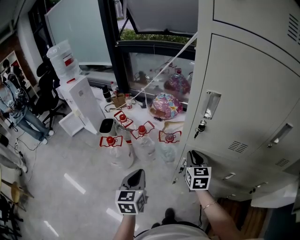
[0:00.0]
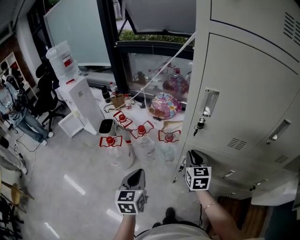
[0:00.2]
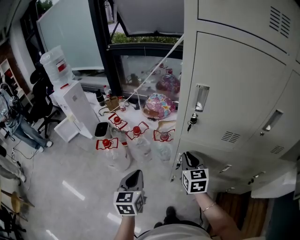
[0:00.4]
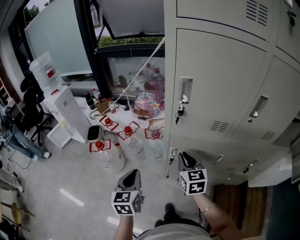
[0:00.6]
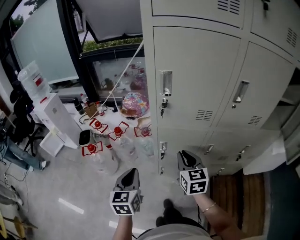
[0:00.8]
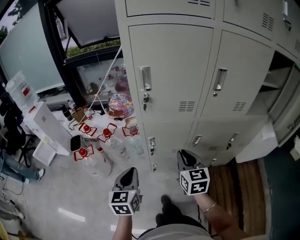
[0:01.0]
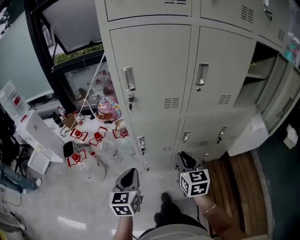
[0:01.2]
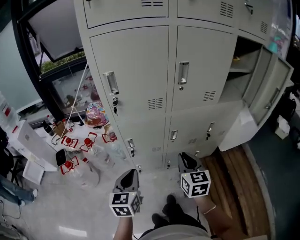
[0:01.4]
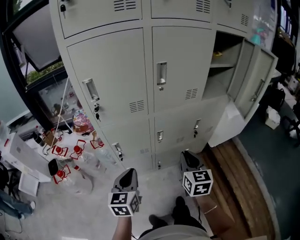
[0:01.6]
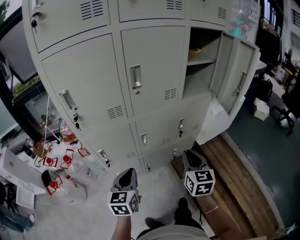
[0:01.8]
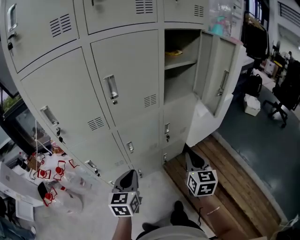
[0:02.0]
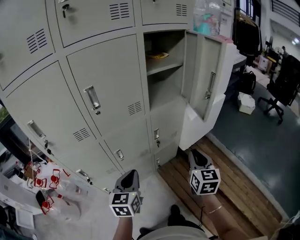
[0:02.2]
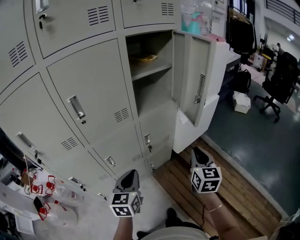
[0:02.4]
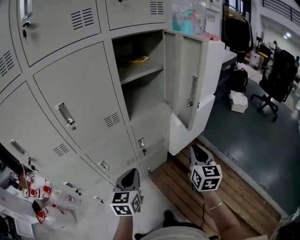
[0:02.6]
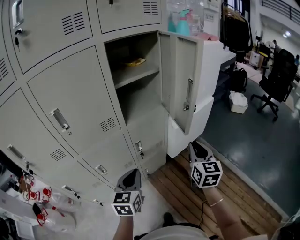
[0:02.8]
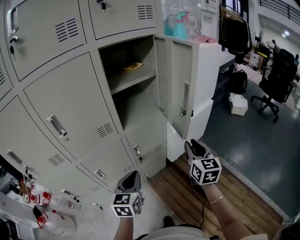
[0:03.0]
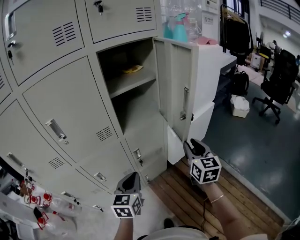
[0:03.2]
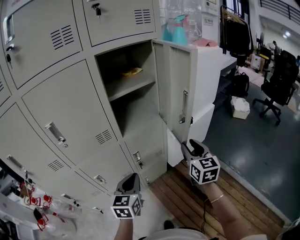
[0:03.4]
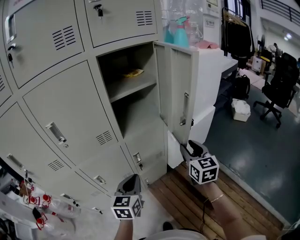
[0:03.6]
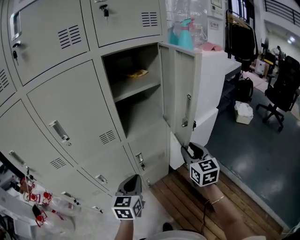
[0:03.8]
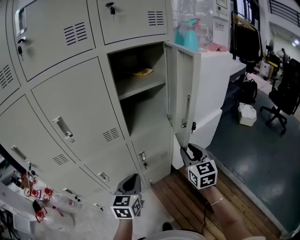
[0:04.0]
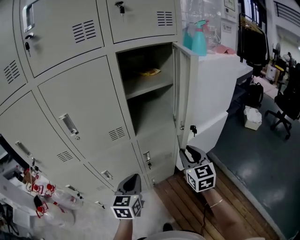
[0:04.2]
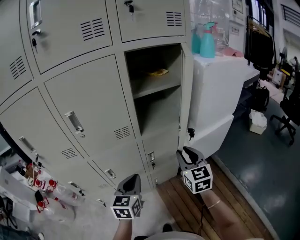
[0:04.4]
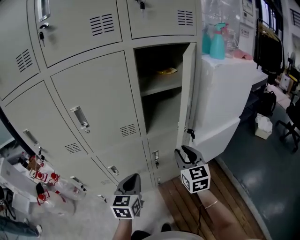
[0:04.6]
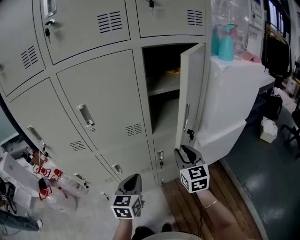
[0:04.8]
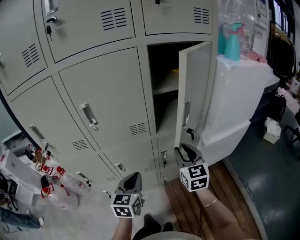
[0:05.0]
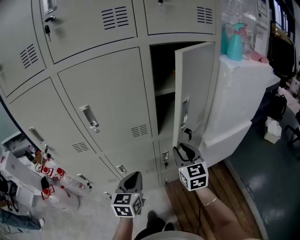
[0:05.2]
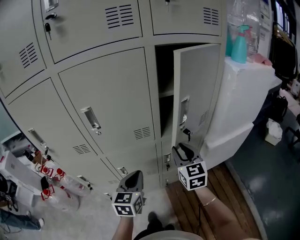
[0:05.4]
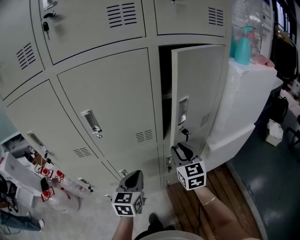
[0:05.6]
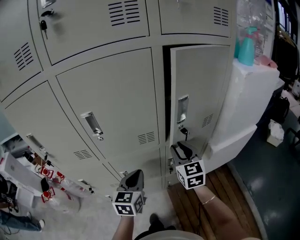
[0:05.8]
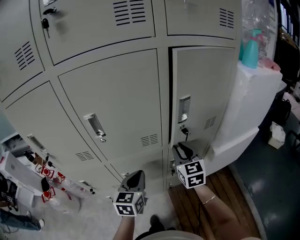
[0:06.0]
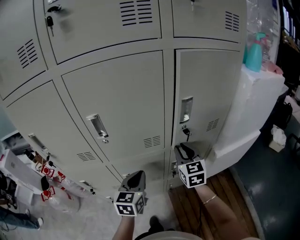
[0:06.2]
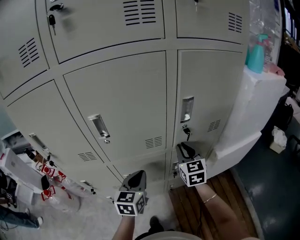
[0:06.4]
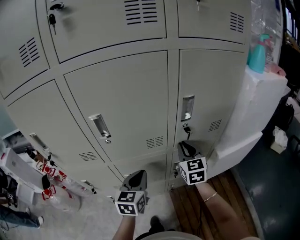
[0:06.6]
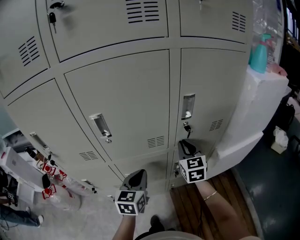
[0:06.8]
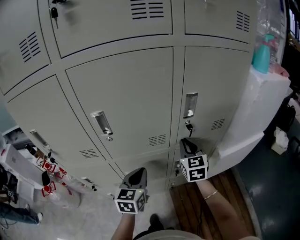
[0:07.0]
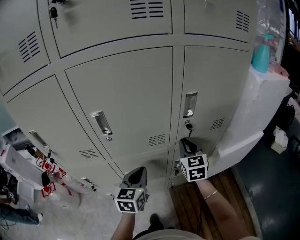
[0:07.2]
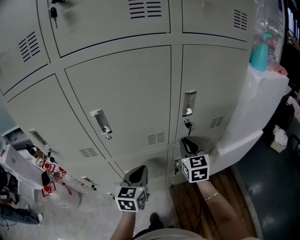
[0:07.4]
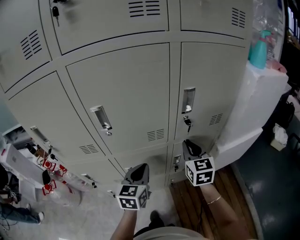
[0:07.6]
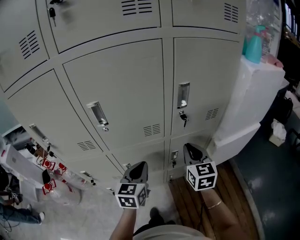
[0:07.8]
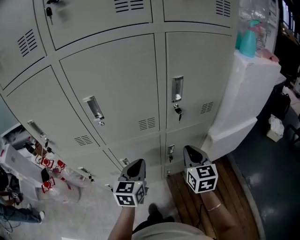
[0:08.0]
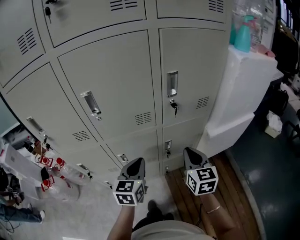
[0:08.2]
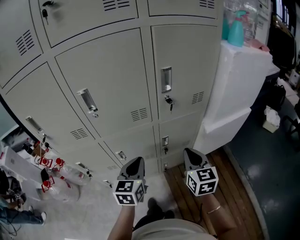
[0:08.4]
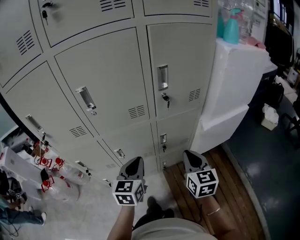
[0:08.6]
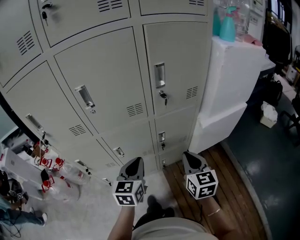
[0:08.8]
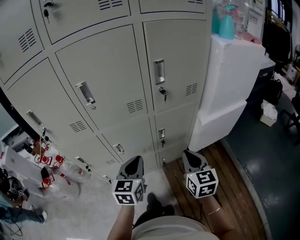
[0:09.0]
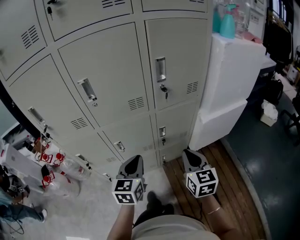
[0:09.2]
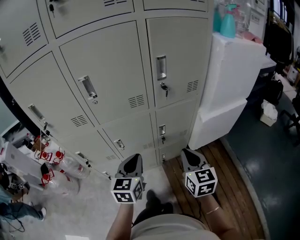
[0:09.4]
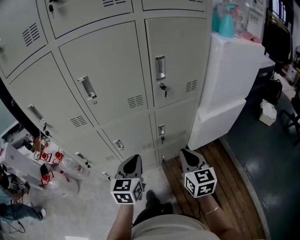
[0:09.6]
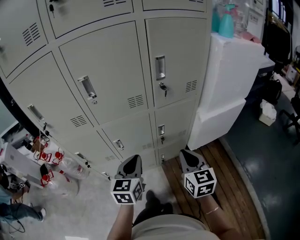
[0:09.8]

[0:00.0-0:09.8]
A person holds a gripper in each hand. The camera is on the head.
0:00.0 to 0:01.4: The left gripper moves approximately 20 cm, and rotates approximately 30 degrees, while the right gripper ends up about 35 cm from where it was, and rotates some 30 degrees.
0:01.4 to 0:02.8: The two grippers travel together, roughly 50 cm. The left gripper changes its angle by roughly 30 degrees. The right gripper changes its angle by about 30 degrees.
0:02.8 to 0:04.2: The right gripper travels forward and to the left by approximately 10 cm, and rotates about 20 degrees.
0:04.2 to 0:05.6: The left gripper travels to the left and forward by roughly 10 cm, while the right gripper goes approximately 20 cm to the left and forward.
0:05.6 to 0:07.0: The left gripper ends up some 5 cm from where it was, while the right gripper goes approximately 10 cm forward, and closes.
0:07.0 to 0:08.4: The right gripper is displaced backward by approximately 20 cm; the left gripper goes approximately 10 cm backward and to the right.
0:08.4 to 0:09.8: The grippers both shift backward by some 10 cm.

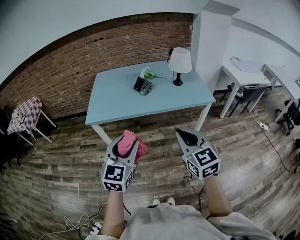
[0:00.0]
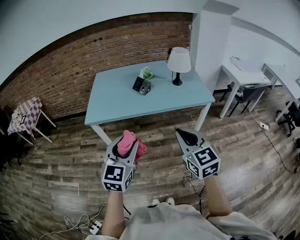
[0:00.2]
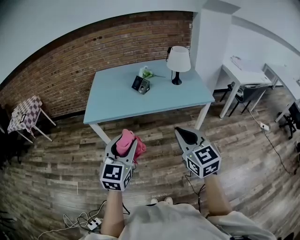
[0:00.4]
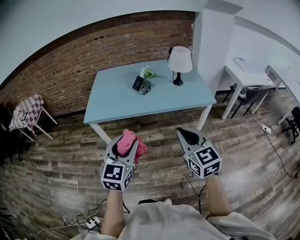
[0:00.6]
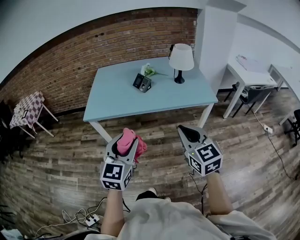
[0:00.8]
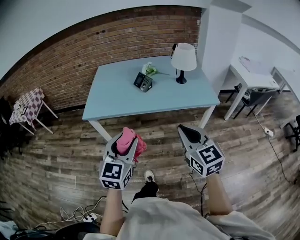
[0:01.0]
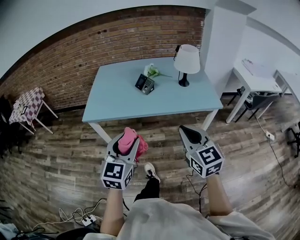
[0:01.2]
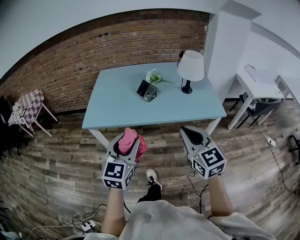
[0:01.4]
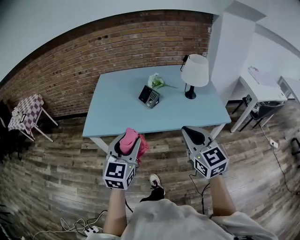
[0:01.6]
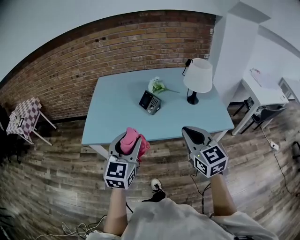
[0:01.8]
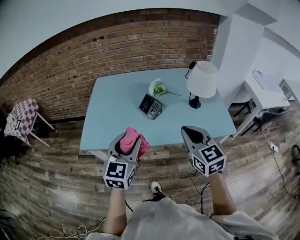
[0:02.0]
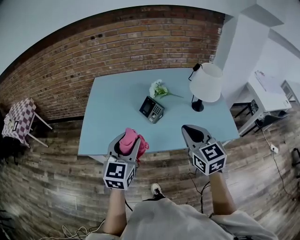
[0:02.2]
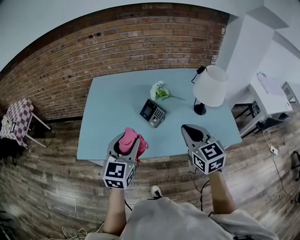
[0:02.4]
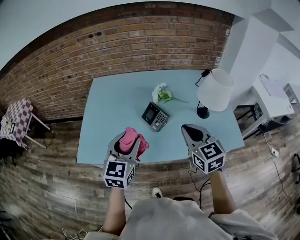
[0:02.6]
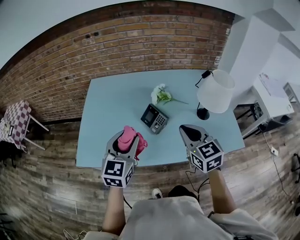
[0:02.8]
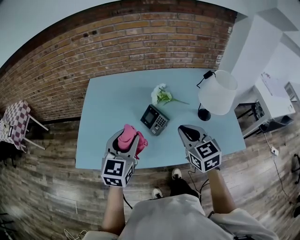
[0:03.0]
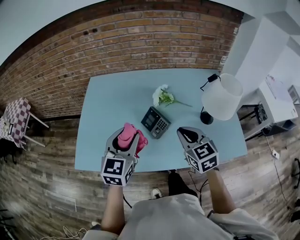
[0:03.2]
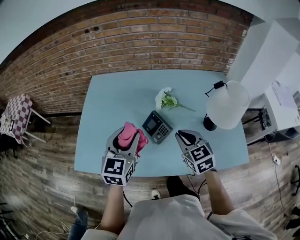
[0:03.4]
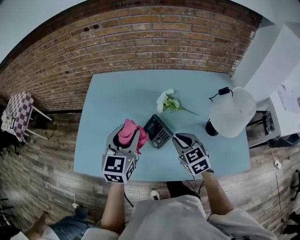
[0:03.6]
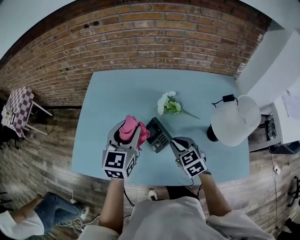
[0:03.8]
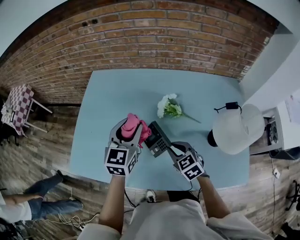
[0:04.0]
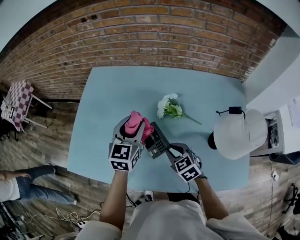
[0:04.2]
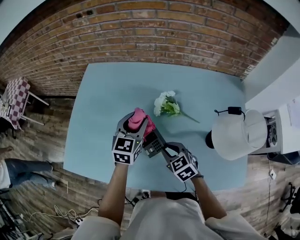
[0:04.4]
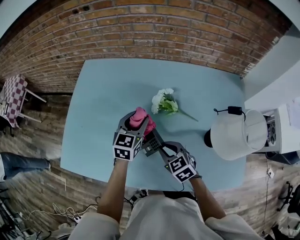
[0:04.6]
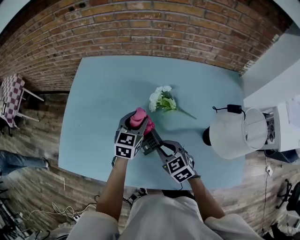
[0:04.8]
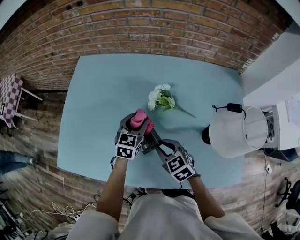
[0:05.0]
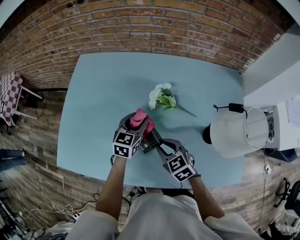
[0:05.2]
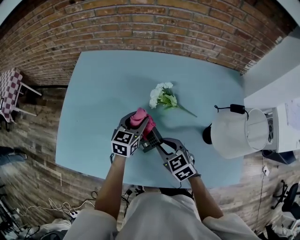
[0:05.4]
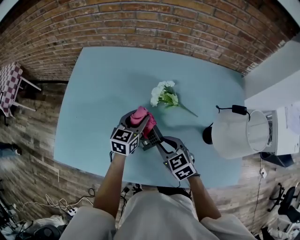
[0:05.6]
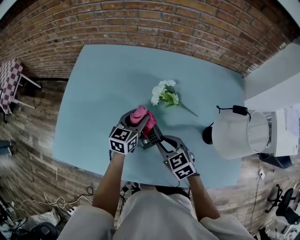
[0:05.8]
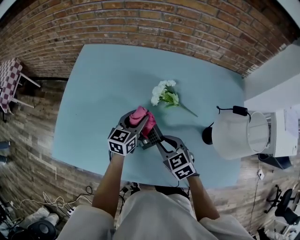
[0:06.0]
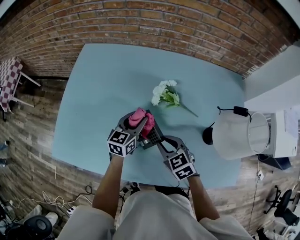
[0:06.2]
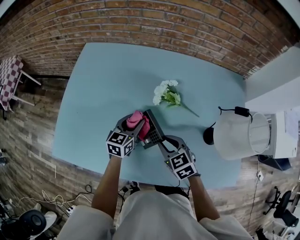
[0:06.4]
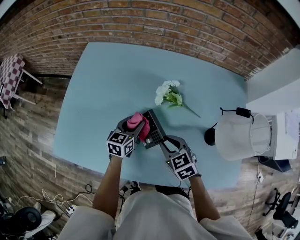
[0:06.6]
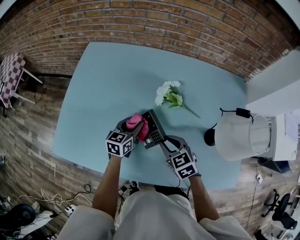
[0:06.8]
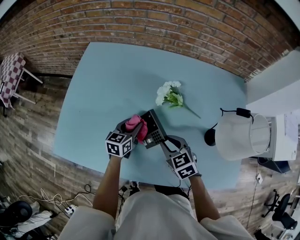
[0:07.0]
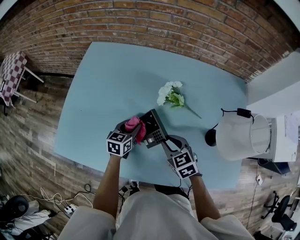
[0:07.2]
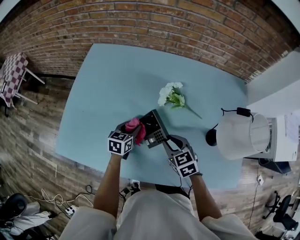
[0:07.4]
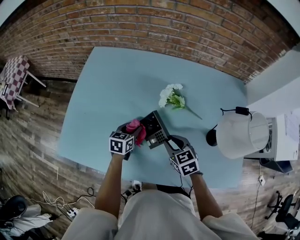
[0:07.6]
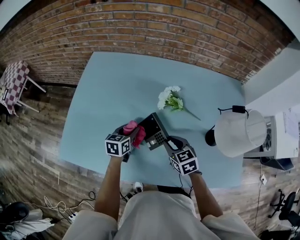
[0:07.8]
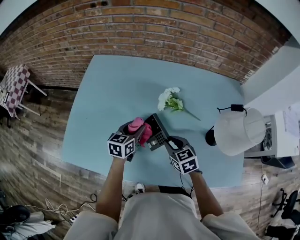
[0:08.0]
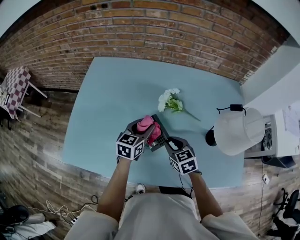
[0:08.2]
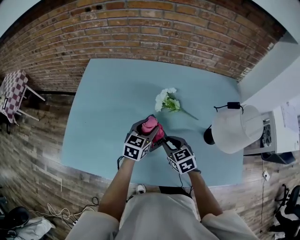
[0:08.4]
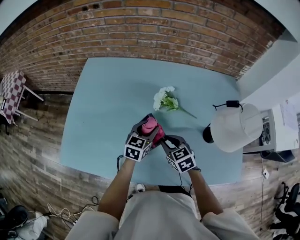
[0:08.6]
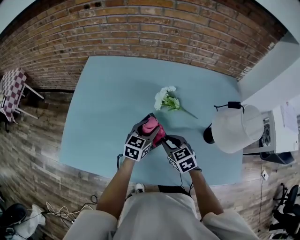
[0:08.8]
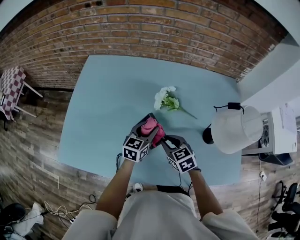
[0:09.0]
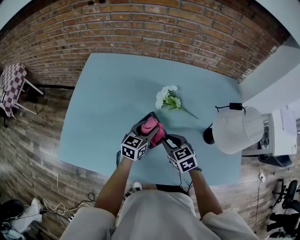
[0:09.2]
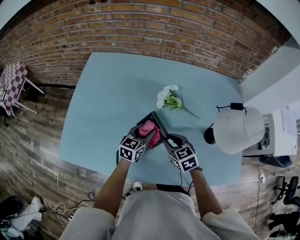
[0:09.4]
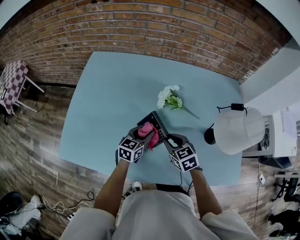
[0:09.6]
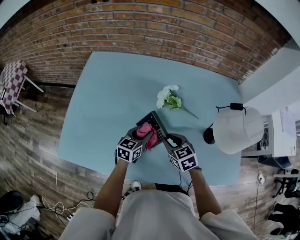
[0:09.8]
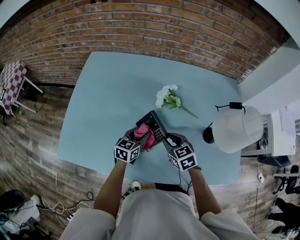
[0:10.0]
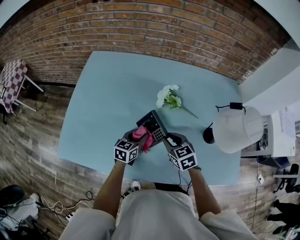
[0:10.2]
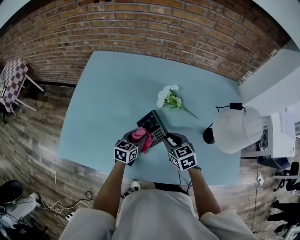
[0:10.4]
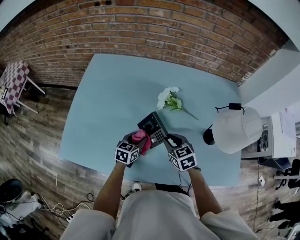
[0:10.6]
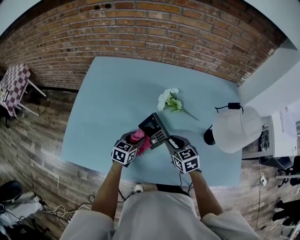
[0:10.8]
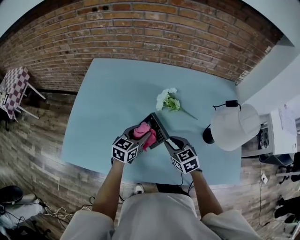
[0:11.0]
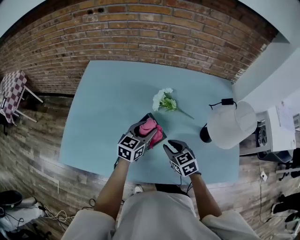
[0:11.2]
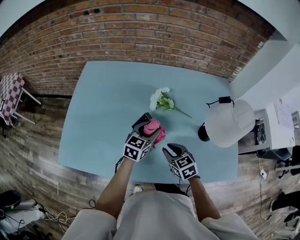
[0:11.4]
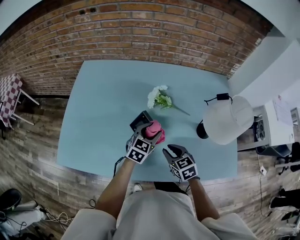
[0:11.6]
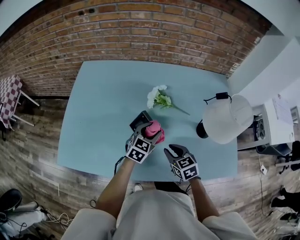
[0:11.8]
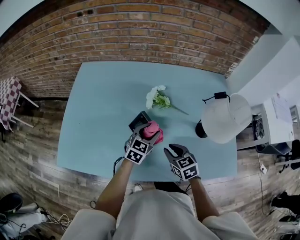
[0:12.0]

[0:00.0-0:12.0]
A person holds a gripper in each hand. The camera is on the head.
0:00.0 to 0:01.6: The grippers both shift forward by approximately 20 cm.
0:01.6 to 0:03.0: Both grippers move forward, about 30 cm.
0:03.0 to 0:04.4: The left gripper heads forward and downward, covering some 25 cm. Meanwhile the right gripper moves downward and forward, some 25 cm, and rotates approximately 30 degrees.
0:04.4 to 0:06.0: The left gripper heads downward, covering roughly 10 cm.
0:06.0 to 0:07.6: The left gripper is displaced downward and to the left by some 10 cm.
0:07.6 to 0:09.0: The left gripper goes approximately 15 cm to the right and upward, and changes its angle by about 20 degrees.
0:09.0 to 0:10.4: The left gripper travels downward and to the left by about 10 cm.
0:10.4 to 0:12.0: The left gripper heads to the right and upward, covering about 15 cm, and turns by roughly 30 degrees. Meanwhile the right gripper travels backward by roughly 5 cm.

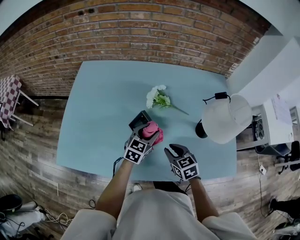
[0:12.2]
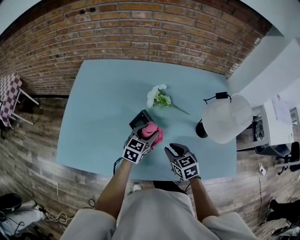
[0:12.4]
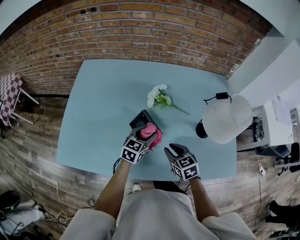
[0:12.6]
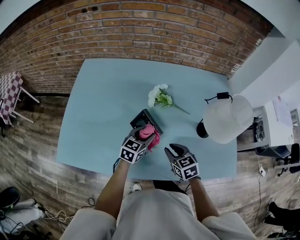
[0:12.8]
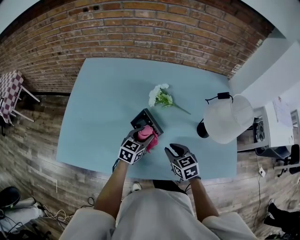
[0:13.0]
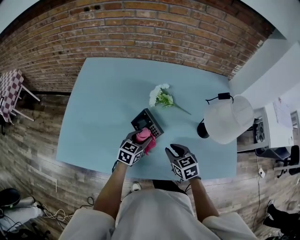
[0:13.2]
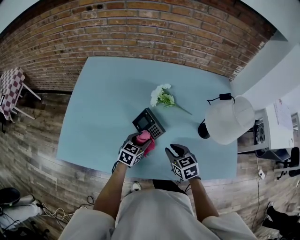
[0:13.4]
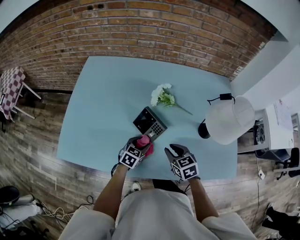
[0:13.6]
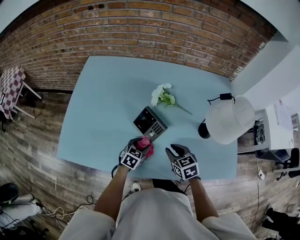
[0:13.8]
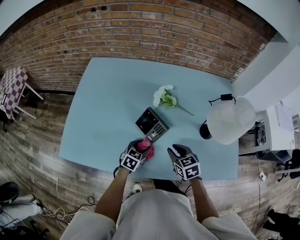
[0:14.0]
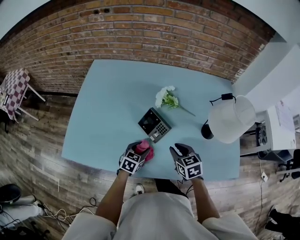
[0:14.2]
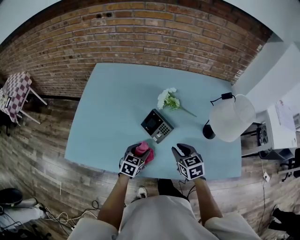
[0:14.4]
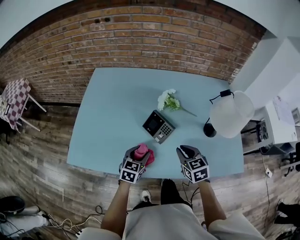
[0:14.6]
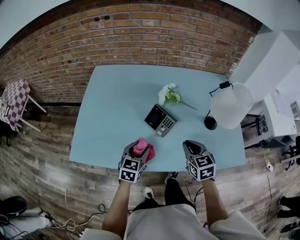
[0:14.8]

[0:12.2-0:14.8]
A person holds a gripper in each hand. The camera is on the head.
0:12.2 to 0:13.4: The left gripper moves downward, about 5 cm.
0:13.4 to 0:14.8: The left gripper goes approximately 15 cm backward, upward and to the left. Meanwhile the right gripper moves upward, about 10 cm.
